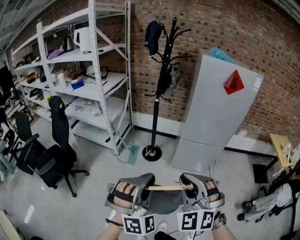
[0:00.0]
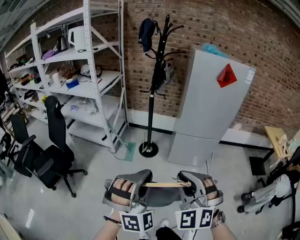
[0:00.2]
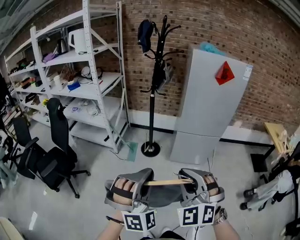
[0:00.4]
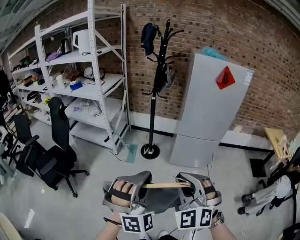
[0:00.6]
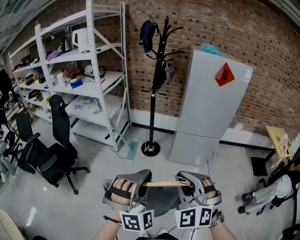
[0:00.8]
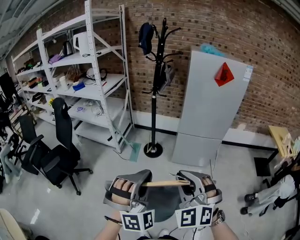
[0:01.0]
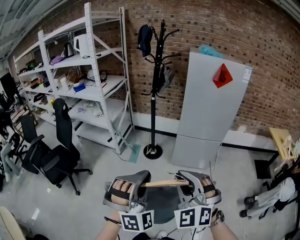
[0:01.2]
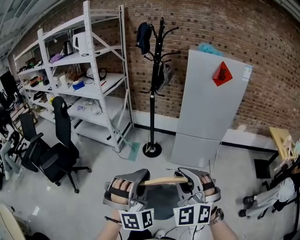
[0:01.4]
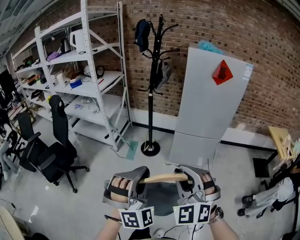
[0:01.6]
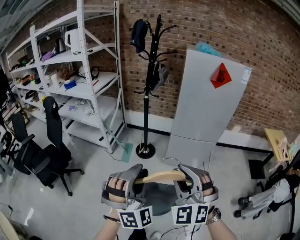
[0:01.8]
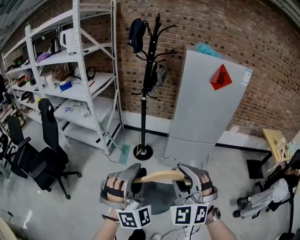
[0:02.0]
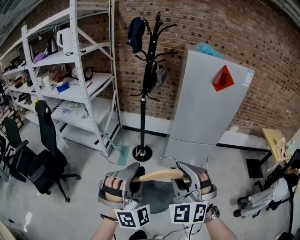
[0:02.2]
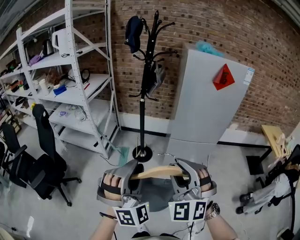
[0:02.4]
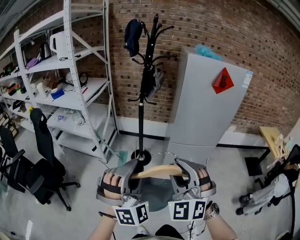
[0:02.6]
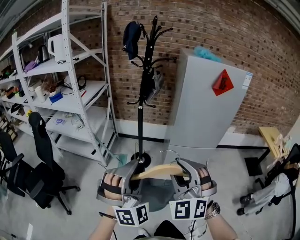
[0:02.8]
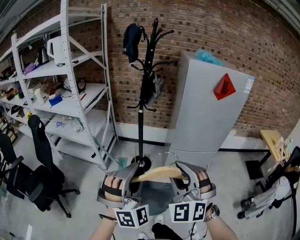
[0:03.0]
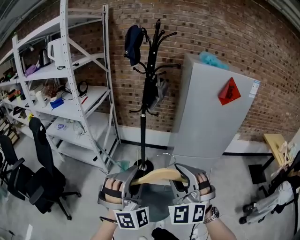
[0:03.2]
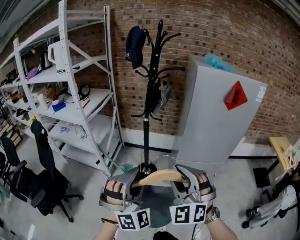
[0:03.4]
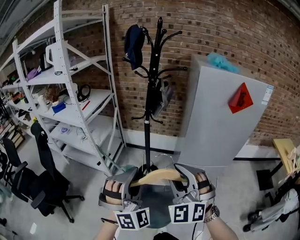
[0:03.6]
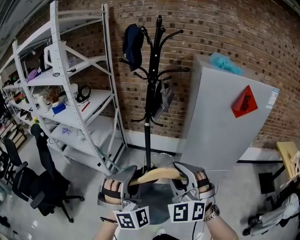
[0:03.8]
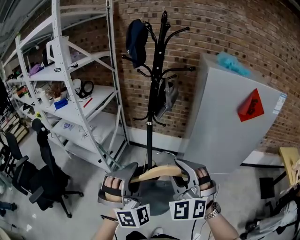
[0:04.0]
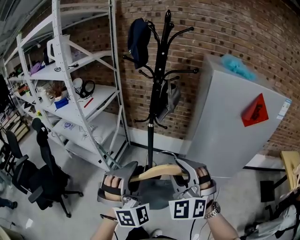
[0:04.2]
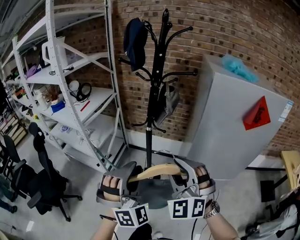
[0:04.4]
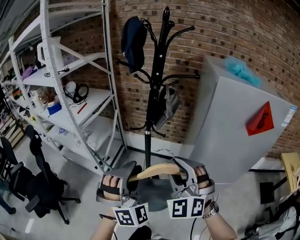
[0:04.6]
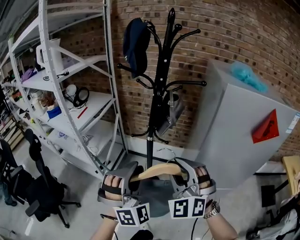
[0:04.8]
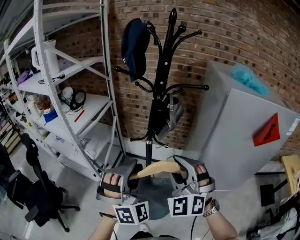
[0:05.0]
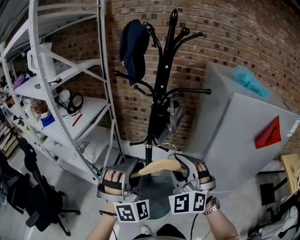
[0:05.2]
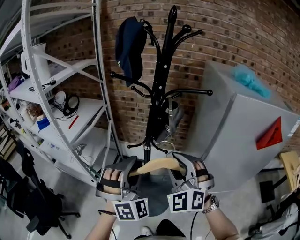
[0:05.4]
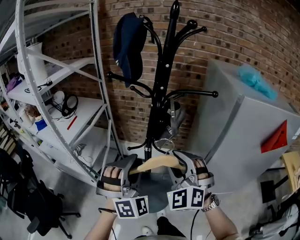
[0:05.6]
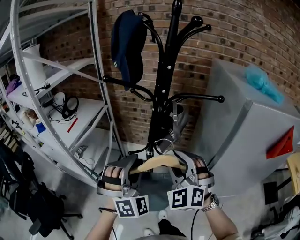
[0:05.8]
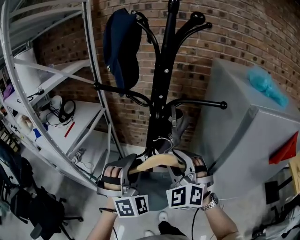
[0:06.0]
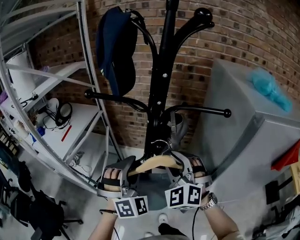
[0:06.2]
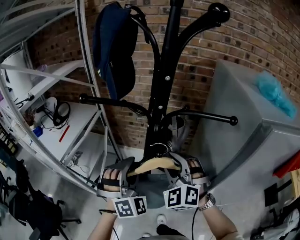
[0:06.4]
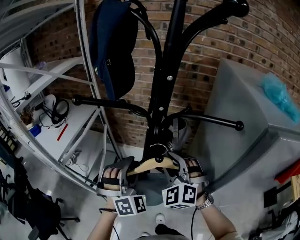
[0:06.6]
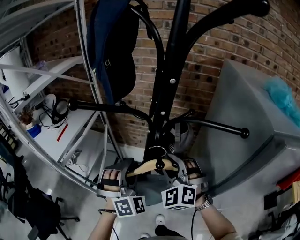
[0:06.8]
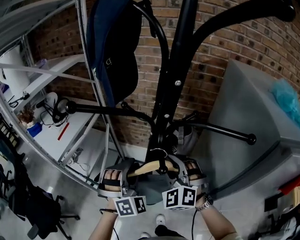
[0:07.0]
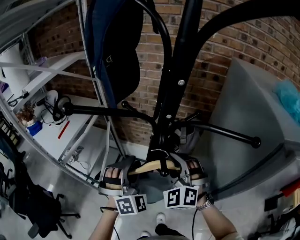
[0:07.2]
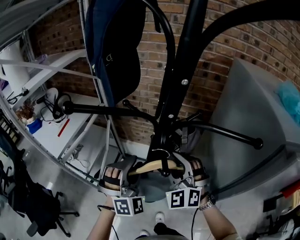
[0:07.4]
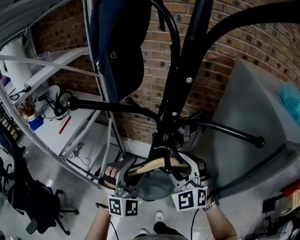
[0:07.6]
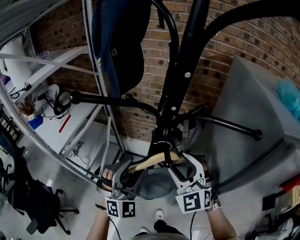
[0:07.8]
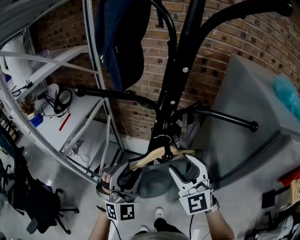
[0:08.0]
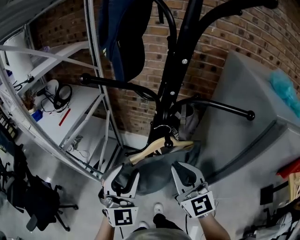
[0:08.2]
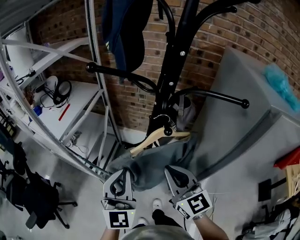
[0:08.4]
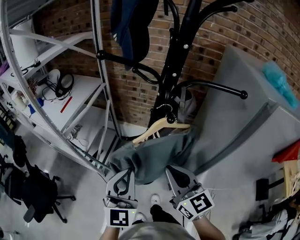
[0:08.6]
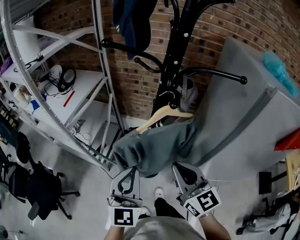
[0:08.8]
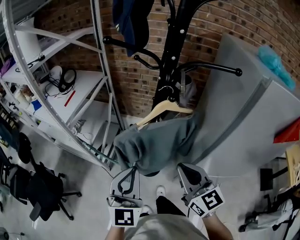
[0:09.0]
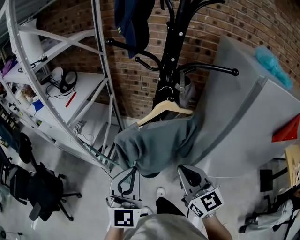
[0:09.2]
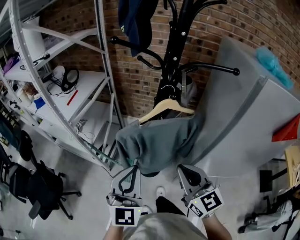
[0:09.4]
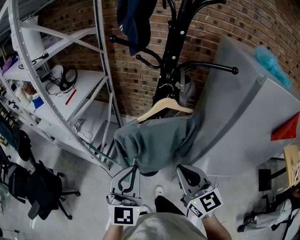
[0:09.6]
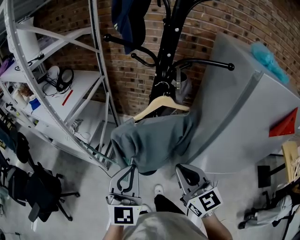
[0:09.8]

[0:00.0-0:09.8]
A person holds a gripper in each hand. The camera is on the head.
0:00.0 to 0:01.4: Both grippers move backward and to the right, about 10 cm.
0:01.4 to 0:02.8: The two grippers go about 20 cm forward. The right gripper opens its fingers; the left gripper opens up.
0:02.8 to 0:04.2: The two grippers go some 25 cm forward.
0:04.2 to 0:05.6: The grippers both shift forward by about 25 cm.
0:05.6 to 0:07.0: The two grippers go about 20 cm forward and downward.
0:07.0 to 0:08.4: The two grippers go roughly 15 cm backward. The right gripper twists approximately 50 degrees clockwise, seen from behind, and closes its fingers. Meanwhile the left gripper rolls counterclockwise, seen from behind, by about 50 degrees, and closes its fingers.
0:08.4 to 0:09.8: Both grippers travel together backward, some 10 cm.

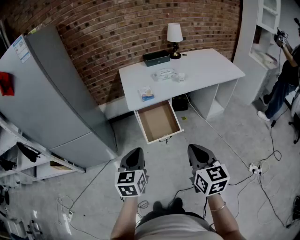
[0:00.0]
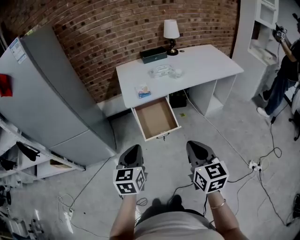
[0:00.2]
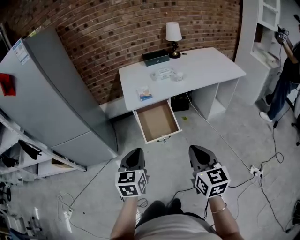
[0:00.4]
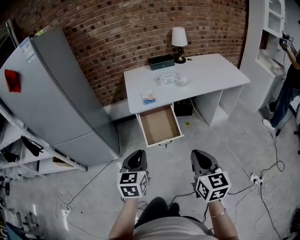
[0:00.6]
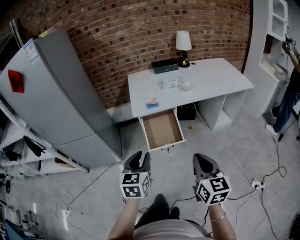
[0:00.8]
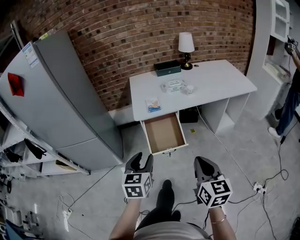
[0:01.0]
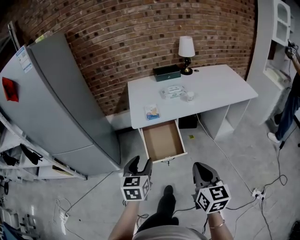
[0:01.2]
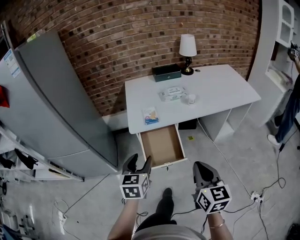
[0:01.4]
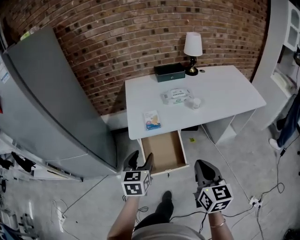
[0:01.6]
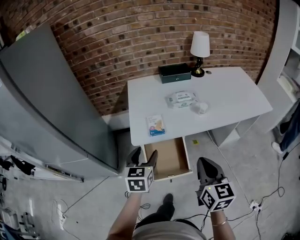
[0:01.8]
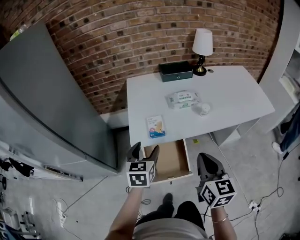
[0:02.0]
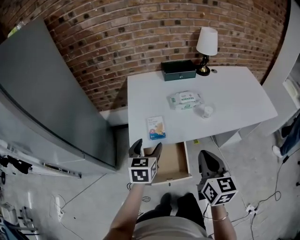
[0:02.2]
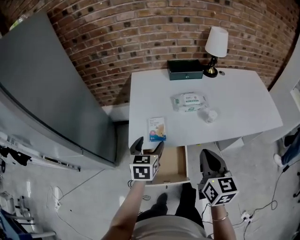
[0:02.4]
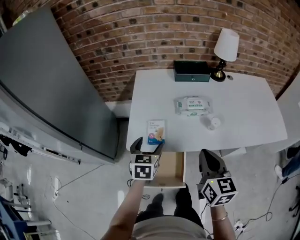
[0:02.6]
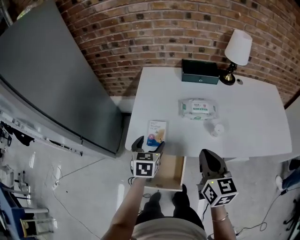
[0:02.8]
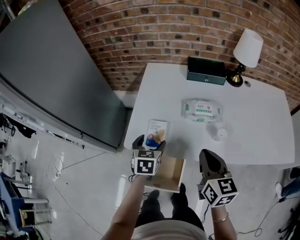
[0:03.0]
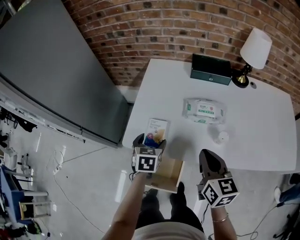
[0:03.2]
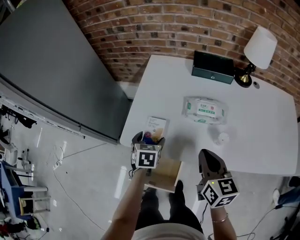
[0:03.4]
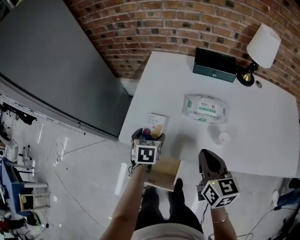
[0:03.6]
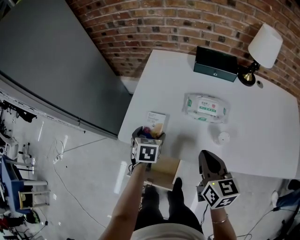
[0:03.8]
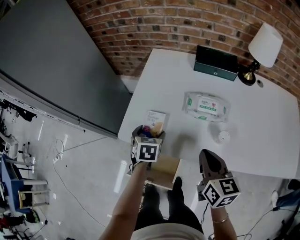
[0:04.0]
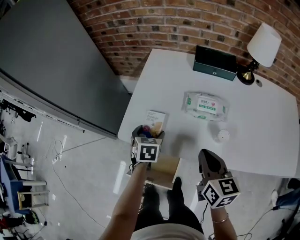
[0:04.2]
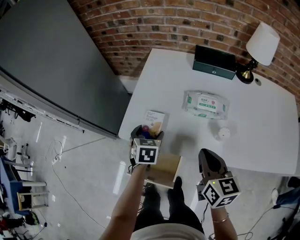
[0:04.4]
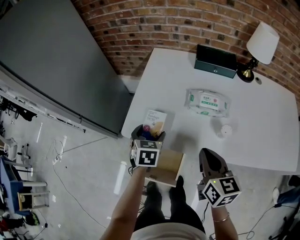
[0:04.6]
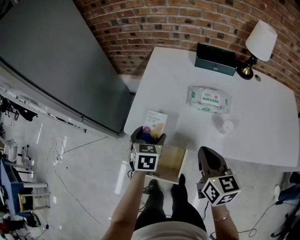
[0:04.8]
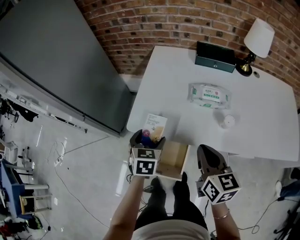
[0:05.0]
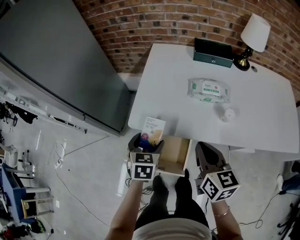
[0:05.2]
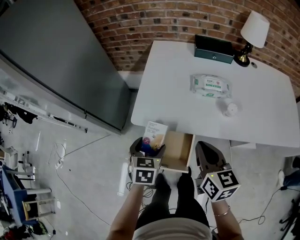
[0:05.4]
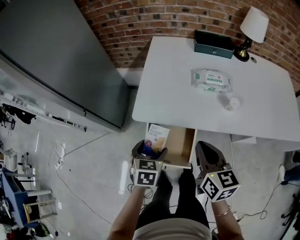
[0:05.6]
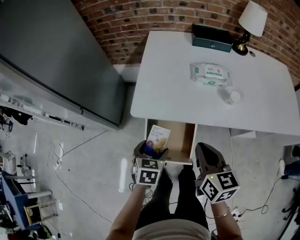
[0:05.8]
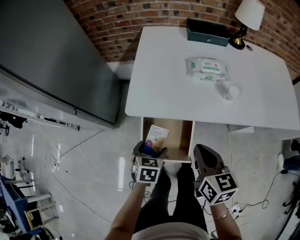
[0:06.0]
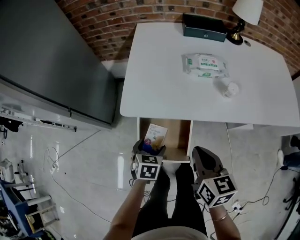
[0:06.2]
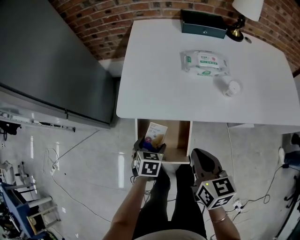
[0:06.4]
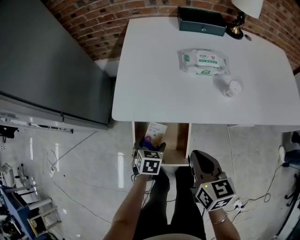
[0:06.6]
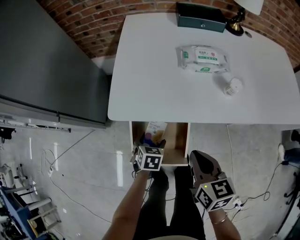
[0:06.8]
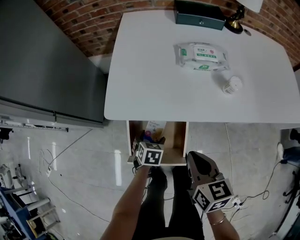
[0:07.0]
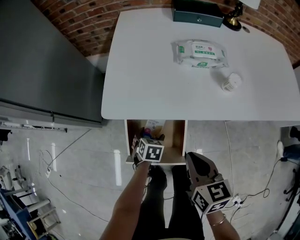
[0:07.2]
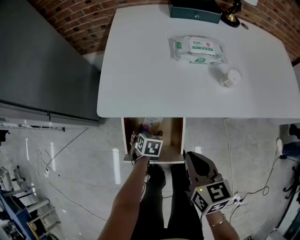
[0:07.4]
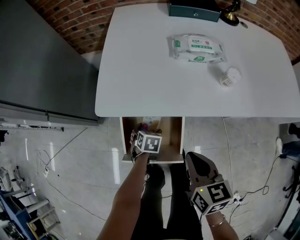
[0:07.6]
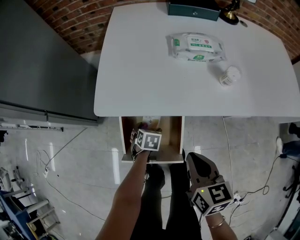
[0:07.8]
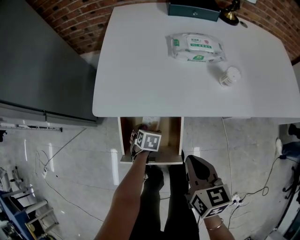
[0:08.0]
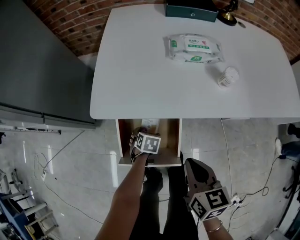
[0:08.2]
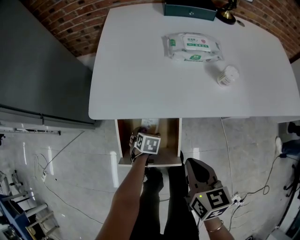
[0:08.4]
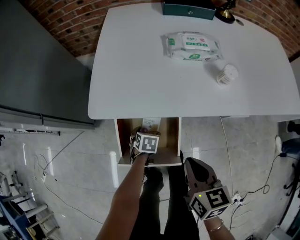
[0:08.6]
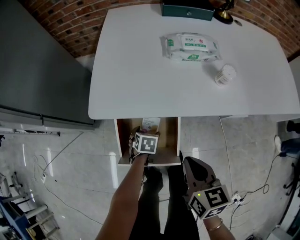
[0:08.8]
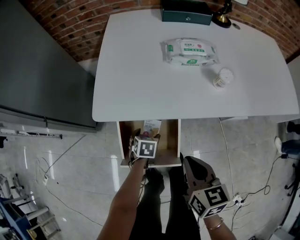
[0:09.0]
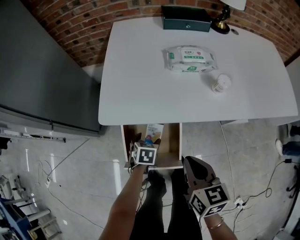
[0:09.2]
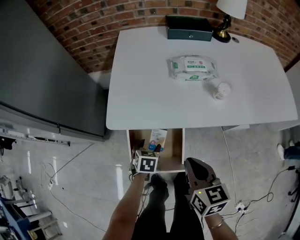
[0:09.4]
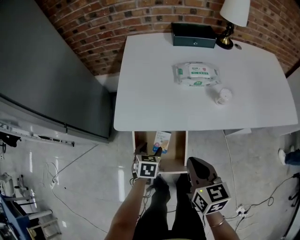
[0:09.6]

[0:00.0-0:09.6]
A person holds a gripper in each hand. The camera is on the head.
0:00.0 to 0:01.6: Both grippers move forward, some 25 cm. The left gripper opens.
0:01.6 to 0:03.2: The left gripper shifts about 35 cm forward and downward, turns by some 30 degrees, and opens up; the right gripper shifts some 35 cm forward, and swivels approximately 30 degrees.
0:03.2 to 0:04.8: The grippers make only small movements.
0:04.8 to 0:06.4: The right gripper shifts about 15 cm backward, downward and to the left. The left gripper is displaced downward and backward by some 20 cm.
0:06.4 to 0:08.0: The left gripper heads downward, covering some 15 cm. Meanwhile the right gripper shifts roughly 10 cm downward.
0:08.0 to 0:09.6: The right gripper heads upward, covering about 10 cm. The left gripper is displaced upward by approximately 15 cm.

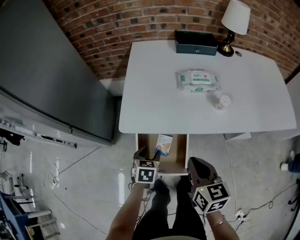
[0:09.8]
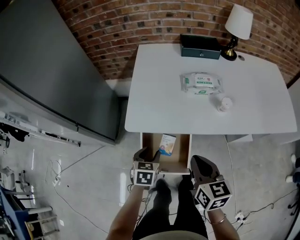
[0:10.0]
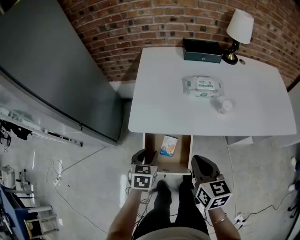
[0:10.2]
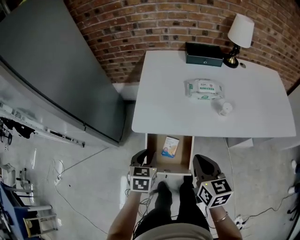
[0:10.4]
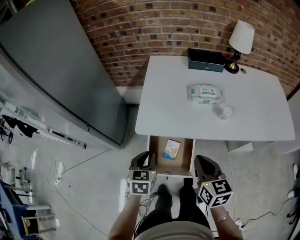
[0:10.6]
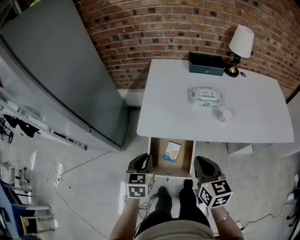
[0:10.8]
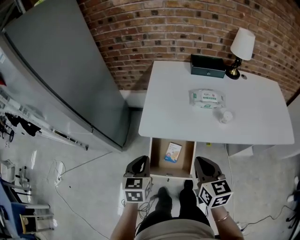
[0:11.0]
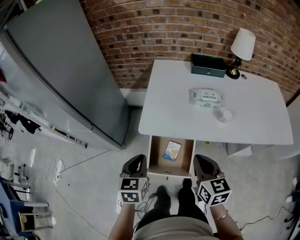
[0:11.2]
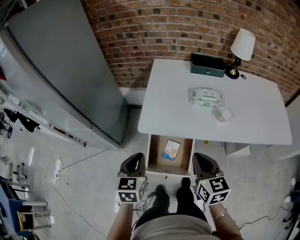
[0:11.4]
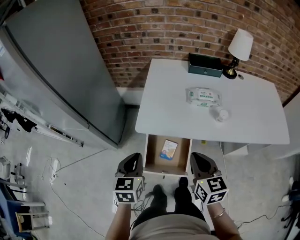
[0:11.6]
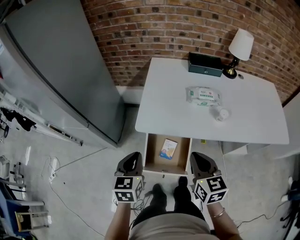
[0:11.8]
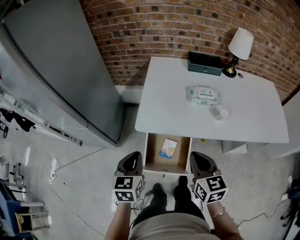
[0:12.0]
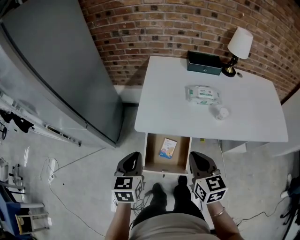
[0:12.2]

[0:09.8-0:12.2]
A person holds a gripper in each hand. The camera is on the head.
0:09.8 to 0:11.0: The left gripper shifts some 20 cm upward, changes its angle by roughly 20 degrees, and closes its fingers. Meanwhile the right gripper heads upward, covering approximately 10 cm.
0:11.0 to 0:12.2: There are only small adjustments of the grippers.

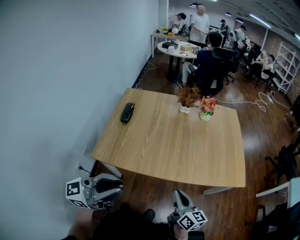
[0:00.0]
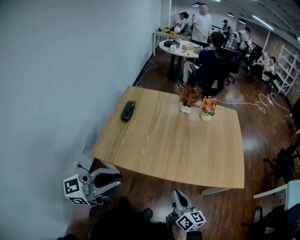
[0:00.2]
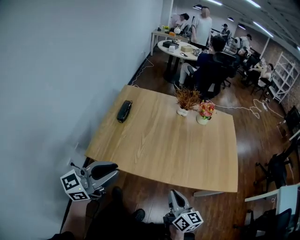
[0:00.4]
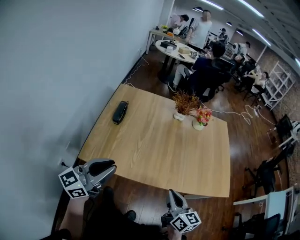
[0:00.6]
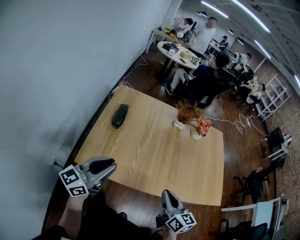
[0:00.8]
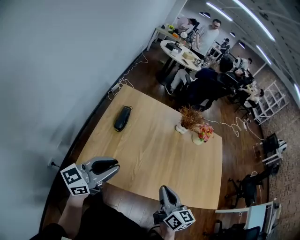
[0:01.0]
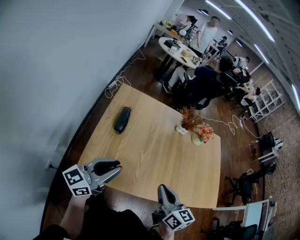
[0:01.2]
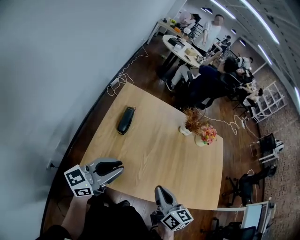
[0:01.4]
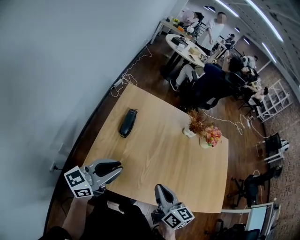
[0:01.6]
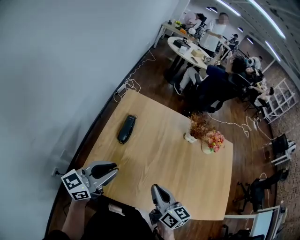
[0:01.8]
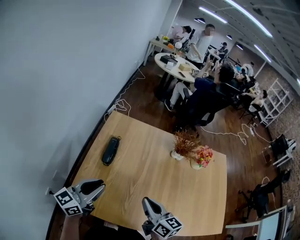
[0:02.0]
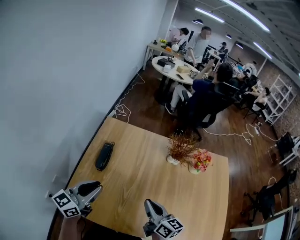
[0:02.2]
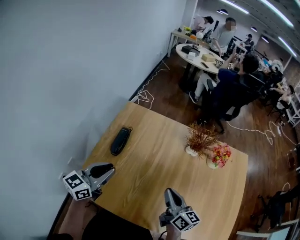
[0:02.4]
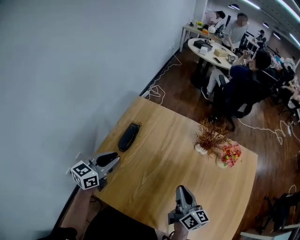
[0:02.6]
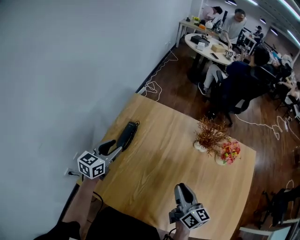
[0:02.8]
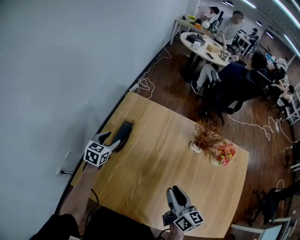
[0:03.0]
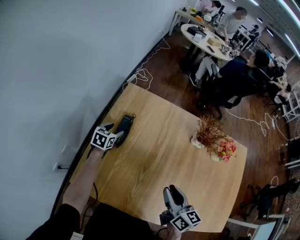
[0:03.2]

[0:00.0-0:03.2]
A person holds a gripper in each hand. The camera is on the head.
0:00.0 to 0:01.6: The right gripper moves to the left and forward, roughly 35 cm. The left gripper shifts about 40 cm to the left, forward and downward, and turns by approximately 20 degrees.
0:01.6 to 0:03.2: The right gripper moves forward and to the right, roughly 20 cm, and opens its fingers; the left gripper heads forward and downward, covering some 40 cm, points its fingers some 50 degrees further downward, and opens.
